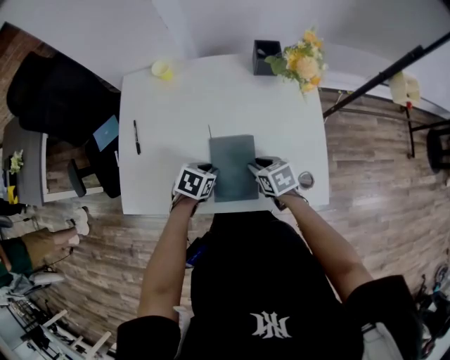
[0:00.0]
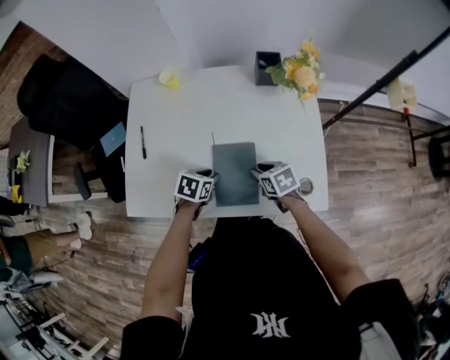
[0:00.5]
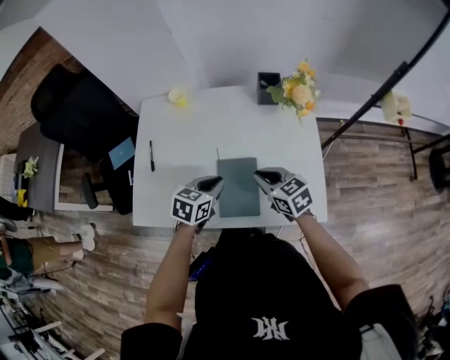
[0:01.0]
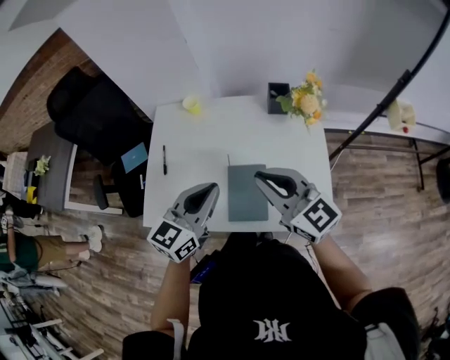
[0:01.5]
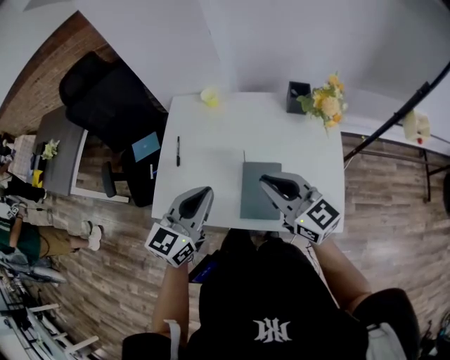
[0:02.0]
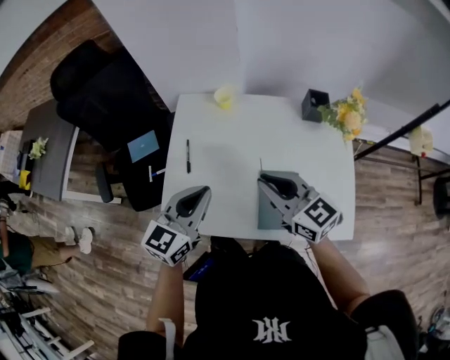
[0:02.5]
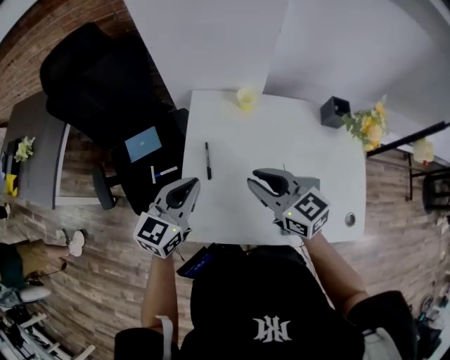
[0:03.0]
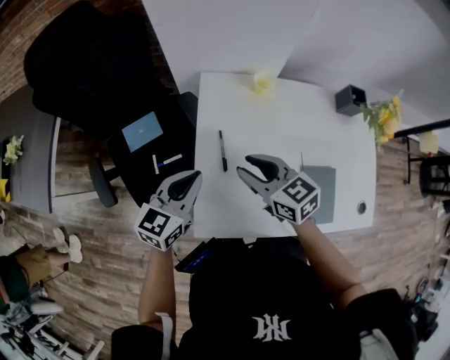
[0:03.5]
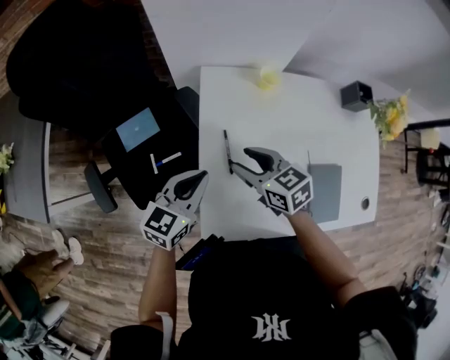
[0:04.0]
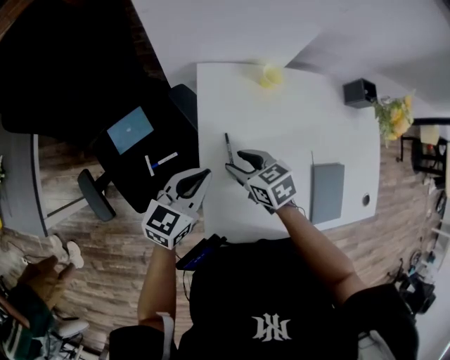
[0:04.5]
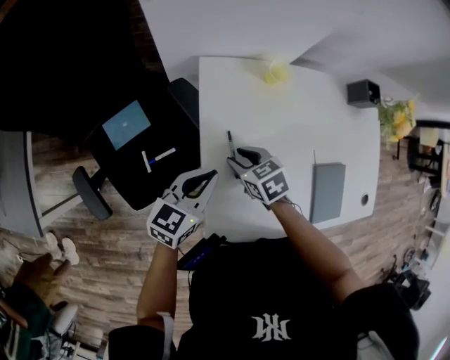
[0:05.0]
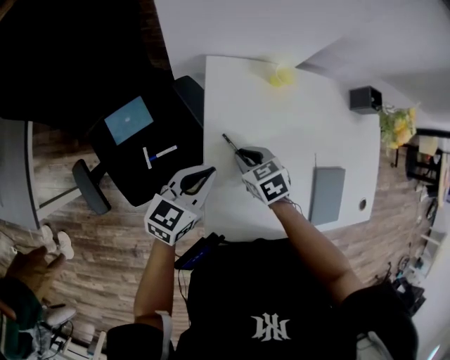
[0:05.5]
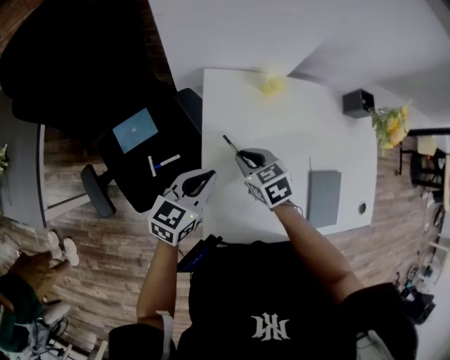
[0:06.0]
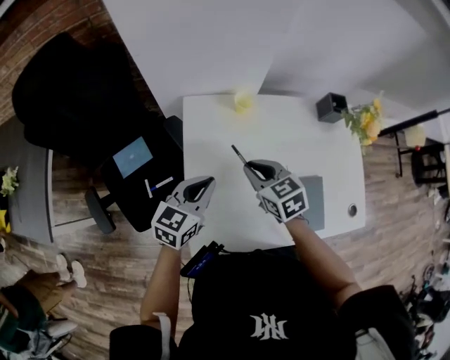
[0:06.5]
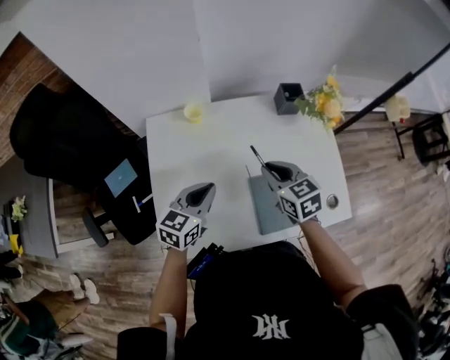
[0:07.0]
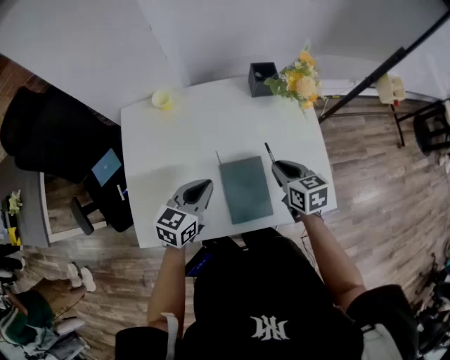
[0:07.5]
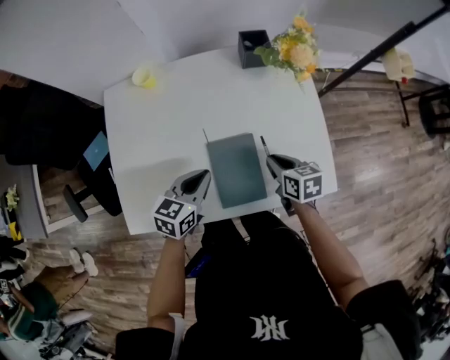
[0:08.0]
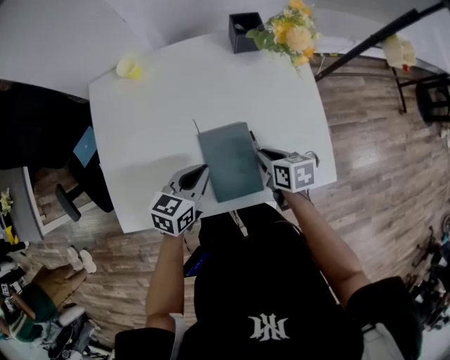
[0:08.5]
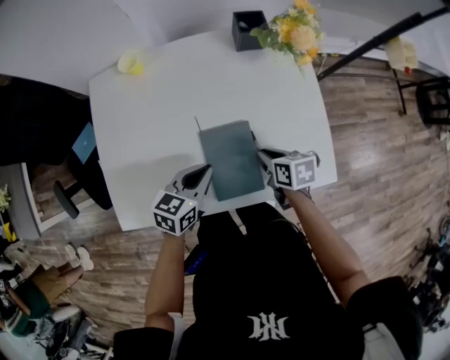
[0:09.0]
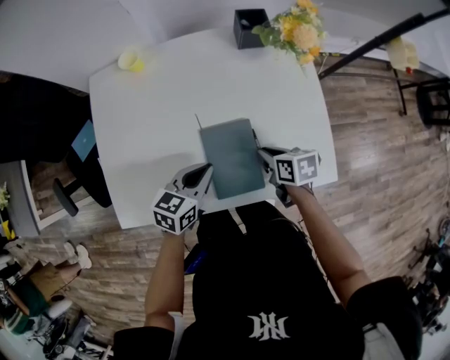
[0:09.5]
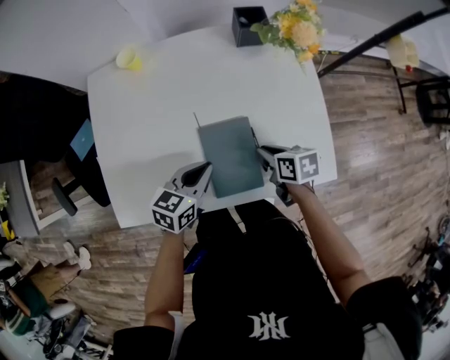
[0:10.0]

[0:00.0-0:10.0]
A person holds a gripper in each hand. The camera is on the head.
0:00.0 to 0:02.0: Both grippers move upward, roughly 30 cm. The right gripper points its fingers approximately 50 degrees further upward, while the left gripper tilts its fingers roughly 50 degrees upward, and closes up.
0:02.0 to 0:04.0: The grippers both shift to the left, forward and downward by some 40 cm. The right gripper turns by roughly 30 degrees, and opens up.
0:04.0 to 0:06.0: The right gripper shifts approximately 5 cm downward, and closes up.
0:06.0 to 0:08.0: The grippers both shift to the right by roughly 40 cm. The right gripper turns by roughly 30 degrees.
0:08.0 to 0:10.0: The grippers make only small movements.

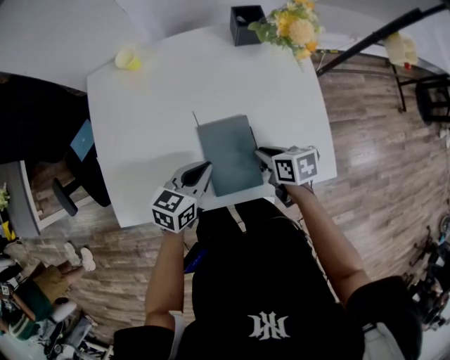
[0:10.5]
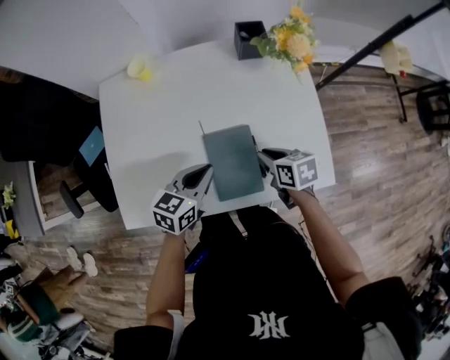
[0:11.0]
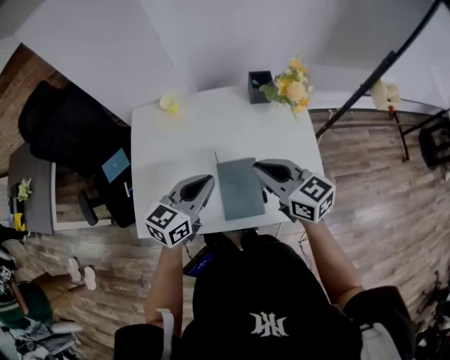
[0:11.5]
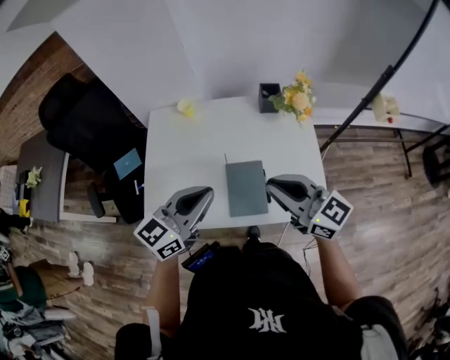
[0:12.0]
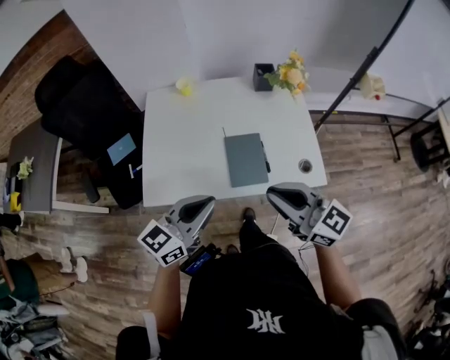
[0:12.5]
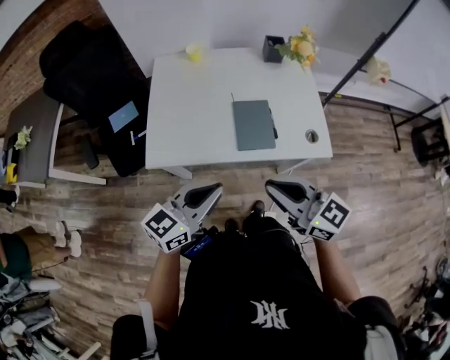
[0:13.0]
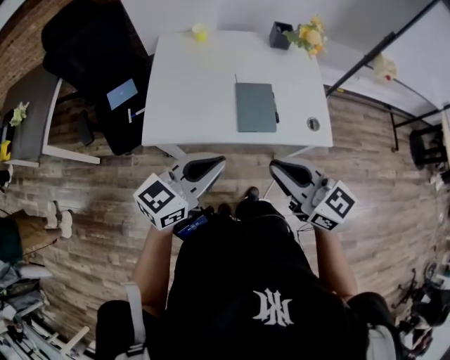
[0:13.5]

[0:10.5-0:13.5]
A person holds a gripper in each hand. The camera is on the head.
0:10.5 to 0:12.0: Both grippers move upward, roughly 30 cm. The left gripper changes its angle by about 30 degrees. The right gripper tilts its fingers about 50 degrees upward.
0:12.0 to 0:13.5: The grippers both shift backward by about 20 cm.

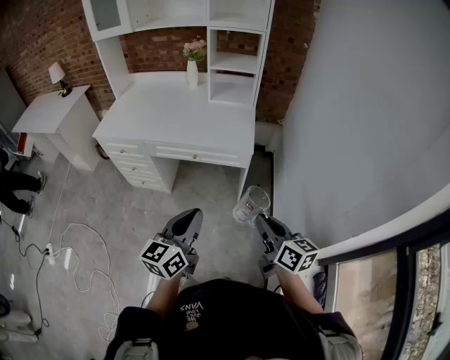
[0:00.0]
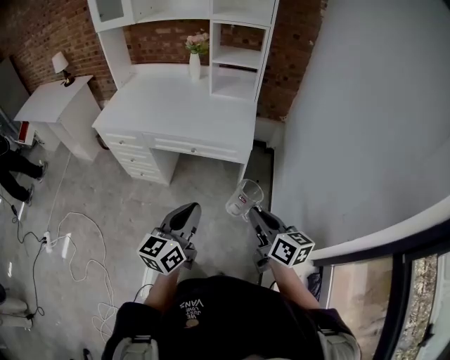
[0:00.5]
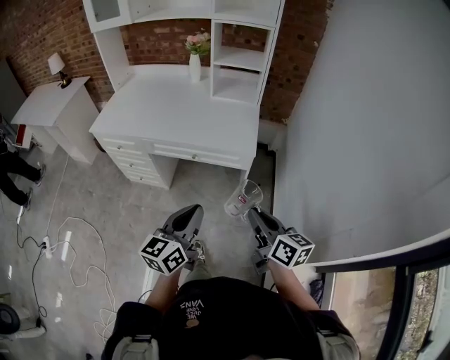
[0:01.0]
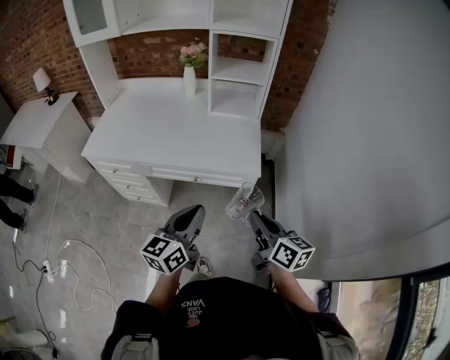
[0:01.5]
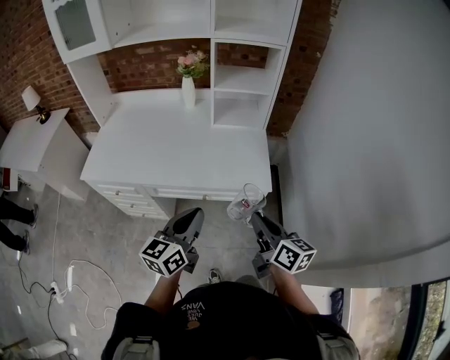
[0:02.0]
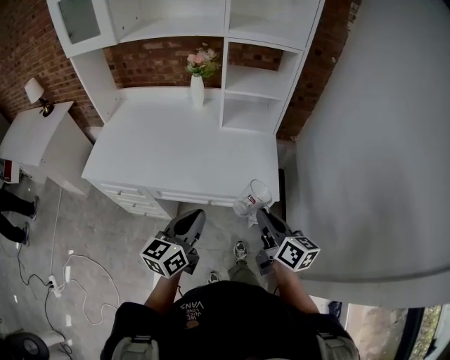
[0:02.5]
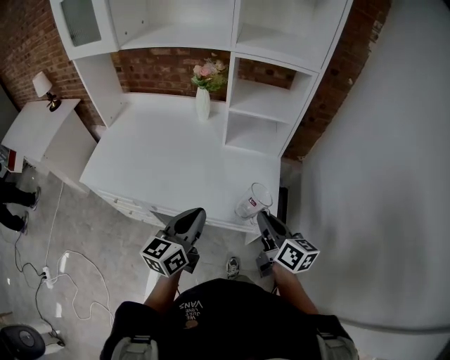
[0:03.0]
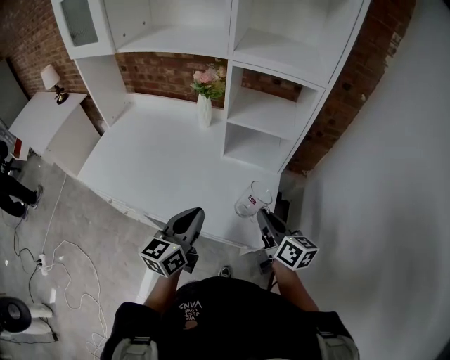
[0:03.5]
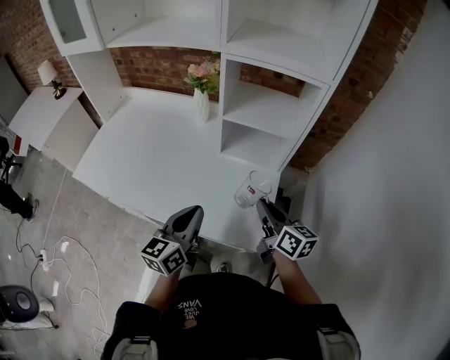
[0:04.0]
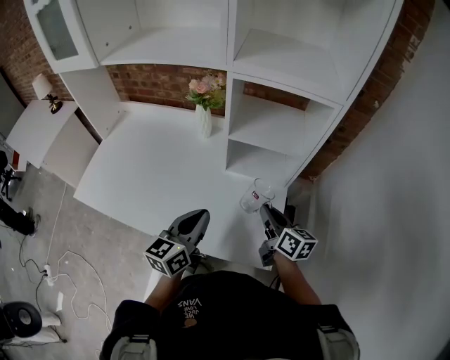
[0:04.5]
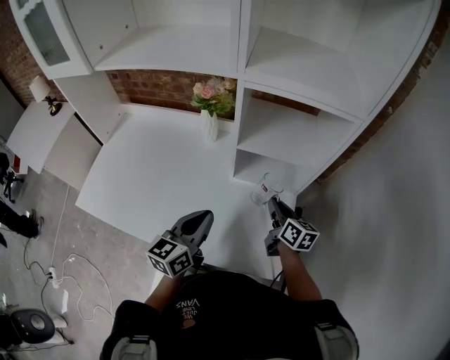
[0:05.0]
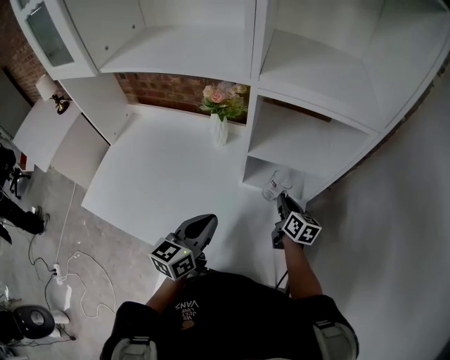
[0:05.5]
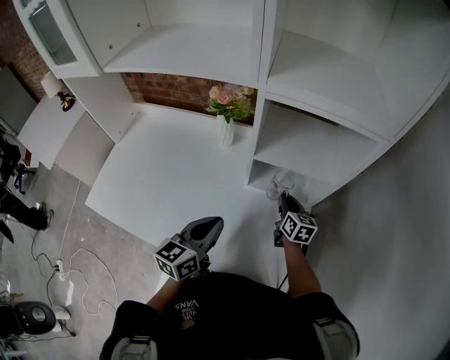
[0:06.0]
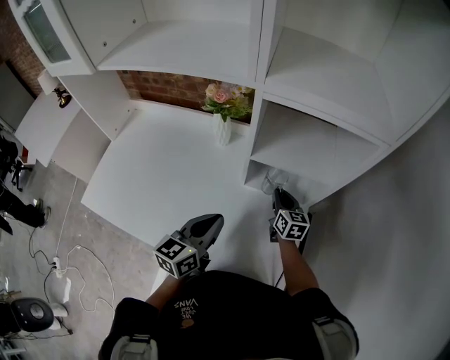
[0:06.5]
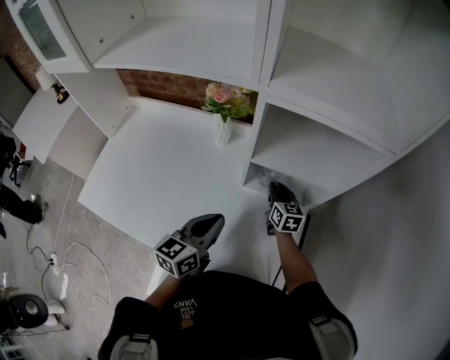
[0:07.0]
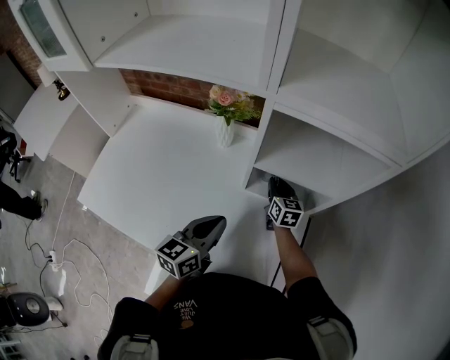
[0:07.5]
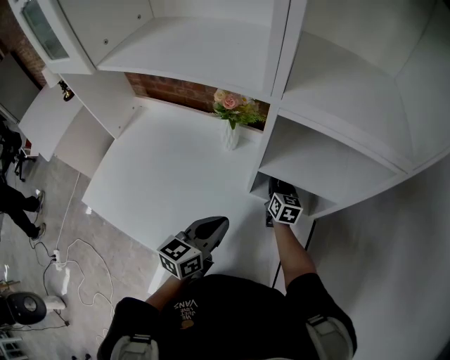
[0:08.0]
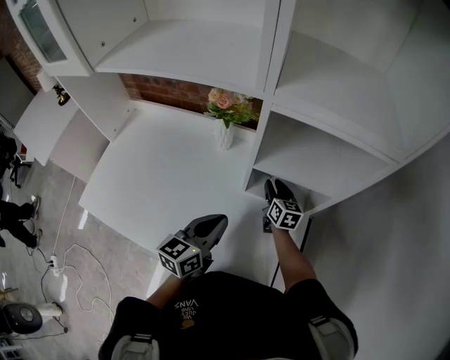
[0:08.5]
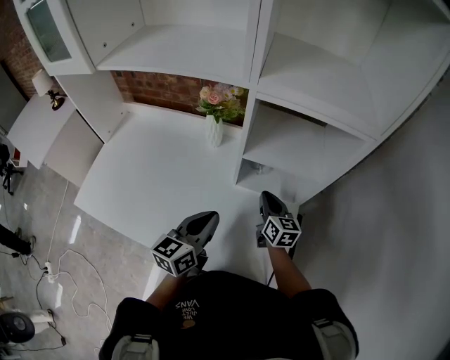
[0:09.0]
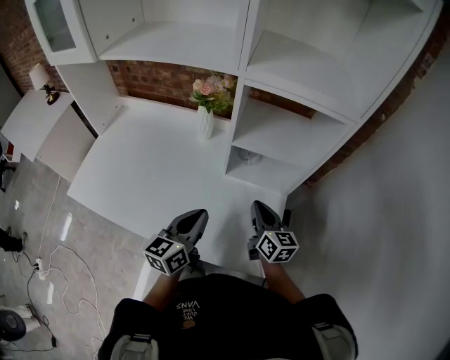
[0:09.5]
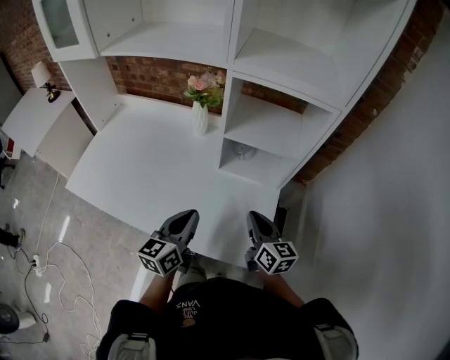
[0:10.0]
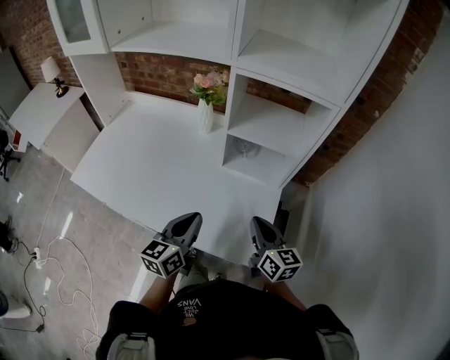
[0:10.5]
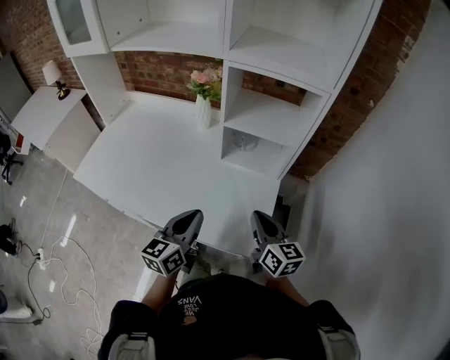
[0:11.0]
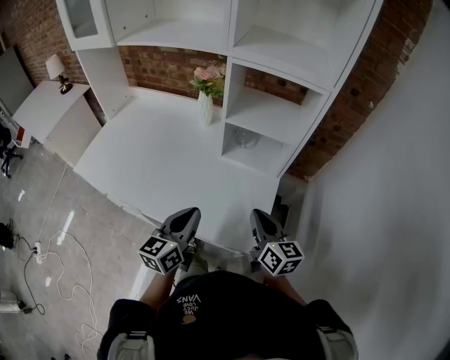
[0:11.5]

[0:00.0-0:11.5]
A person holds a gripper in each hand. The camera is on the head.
0:00.0 to 0:02.0: The right gripper shifts some 25 cm forward and to the left; the left gripper is displaced forward by about 25 cm.
0:02.0 to 0:04.0: The two grippers go approximately 30 cm forward.
0:04.0 to 0:06.0: The left gripper shifts about 15 cm forward. The right gripper is displaced forward and downward by roughly 25 cm, and rotates about 20 degrees.
0:06.0 to 0:07.5: The right gripper moves forward and to the left, about 10 cm.
0:07.5 to 0:09.5: The right gripper heads backward and upward, covering about 25 cm, while the left gripper shifts approximately 5 cm backward.
0:09.5 to 0:11.5: Both grippers move backward, about 15 cm.

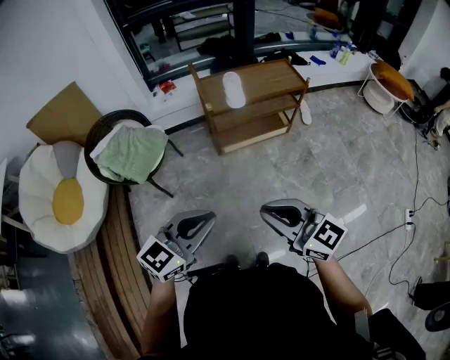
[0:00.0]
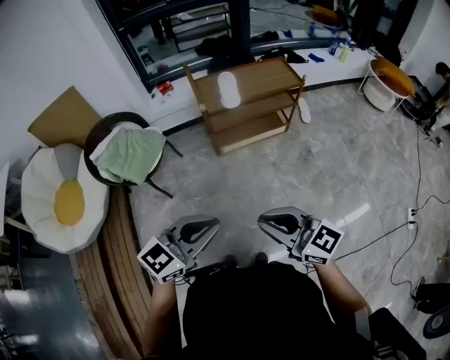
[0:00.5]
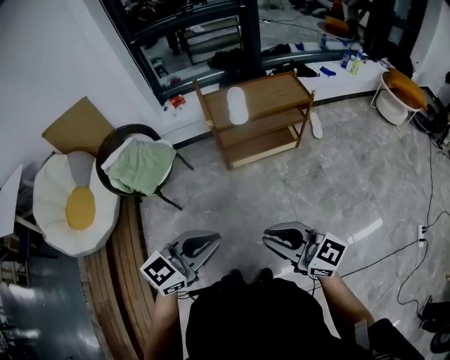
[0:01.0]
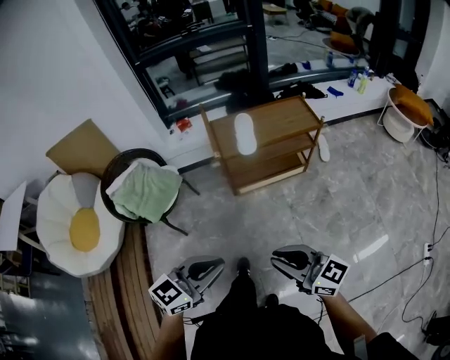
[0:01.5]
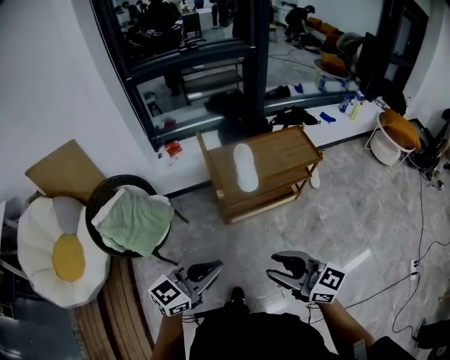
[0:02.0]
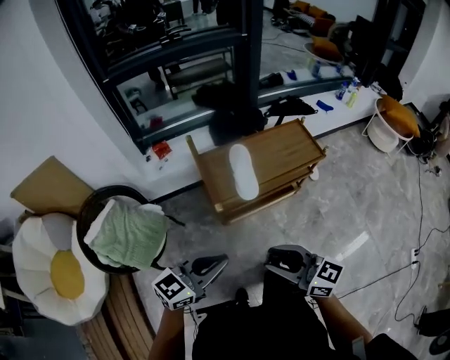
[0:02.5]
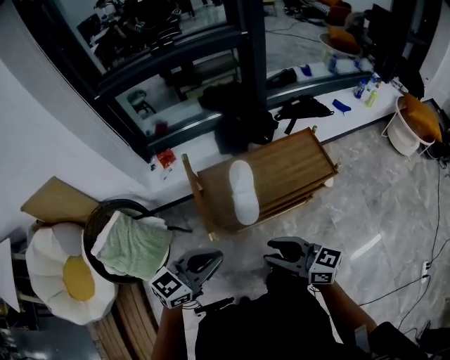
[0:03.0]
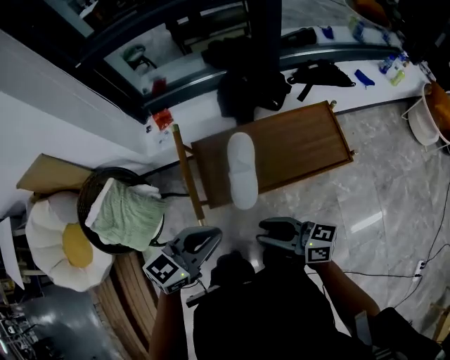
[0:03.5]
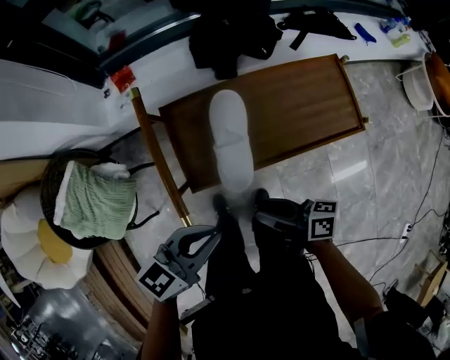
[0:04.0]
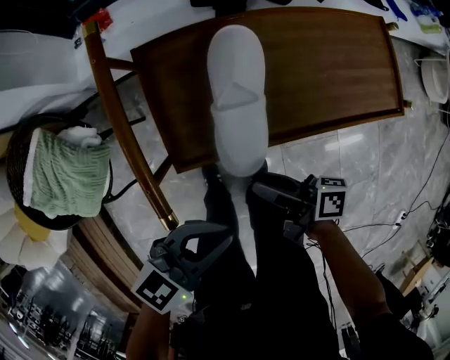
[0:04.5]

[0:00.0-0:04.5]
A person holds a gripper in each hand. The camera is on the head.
0:00.0 to 0:02.0: Both grippers move forward, some 20 cm. The right gripper opens.
0:02.0 to 0:04.5: The right gripper shifts by roughly 50 cm, and rotates around the line of its fingers by approximately 70 degrees, clockwise from behind. The left gripper changes place by about 40 cm.
